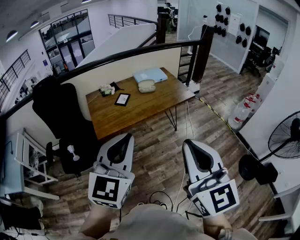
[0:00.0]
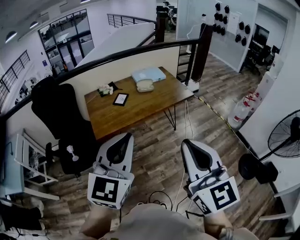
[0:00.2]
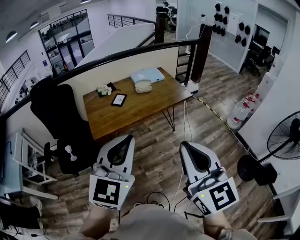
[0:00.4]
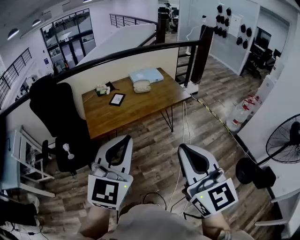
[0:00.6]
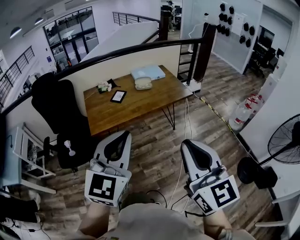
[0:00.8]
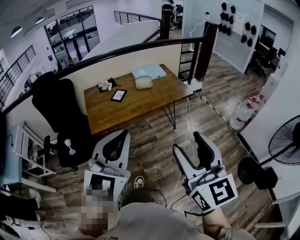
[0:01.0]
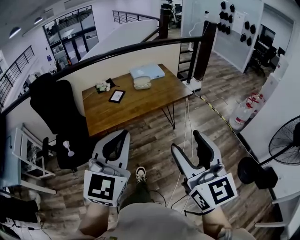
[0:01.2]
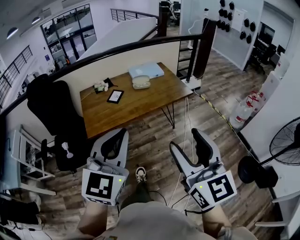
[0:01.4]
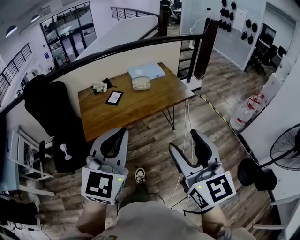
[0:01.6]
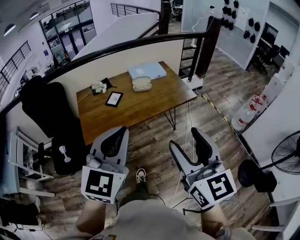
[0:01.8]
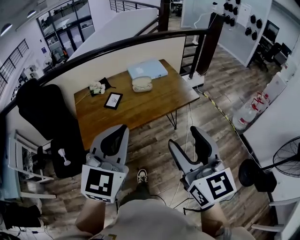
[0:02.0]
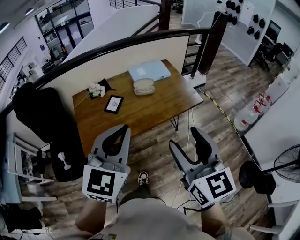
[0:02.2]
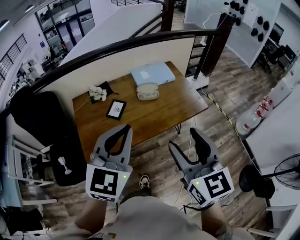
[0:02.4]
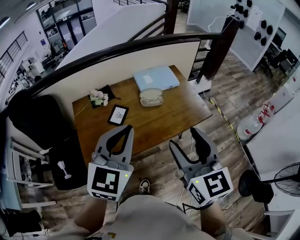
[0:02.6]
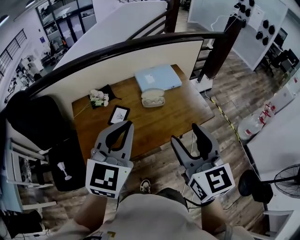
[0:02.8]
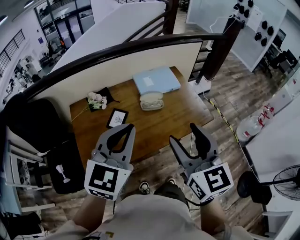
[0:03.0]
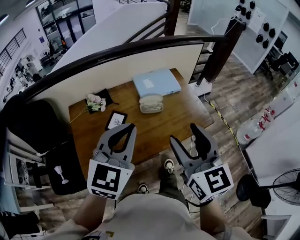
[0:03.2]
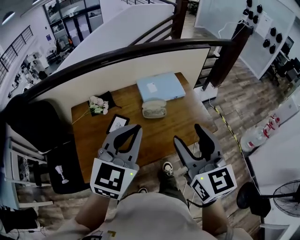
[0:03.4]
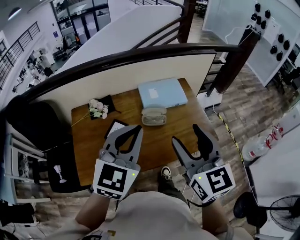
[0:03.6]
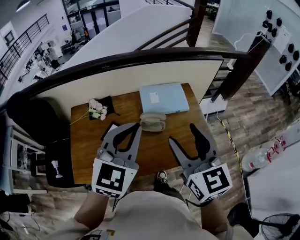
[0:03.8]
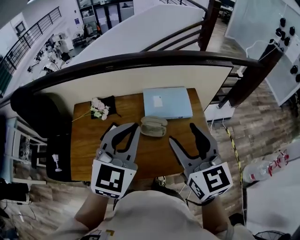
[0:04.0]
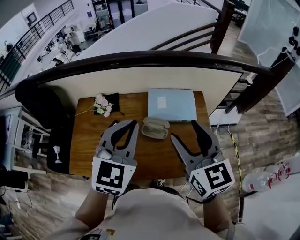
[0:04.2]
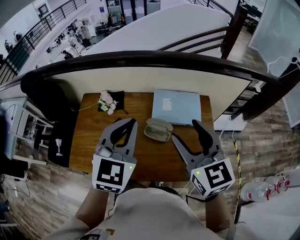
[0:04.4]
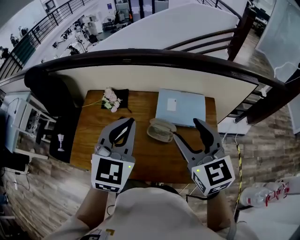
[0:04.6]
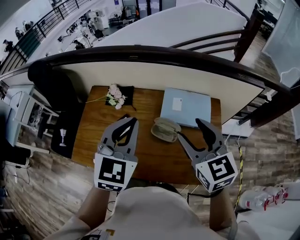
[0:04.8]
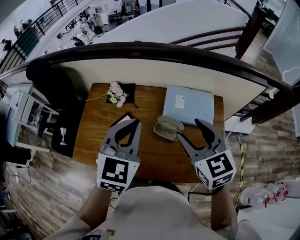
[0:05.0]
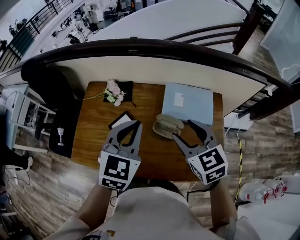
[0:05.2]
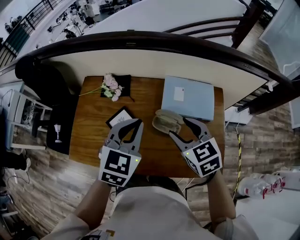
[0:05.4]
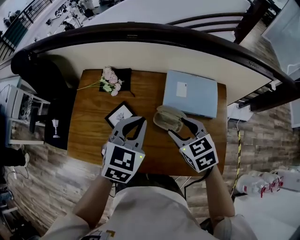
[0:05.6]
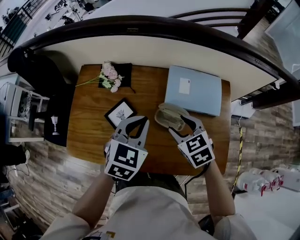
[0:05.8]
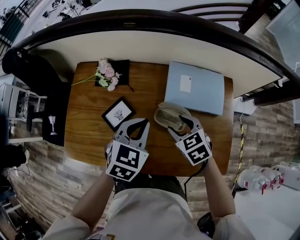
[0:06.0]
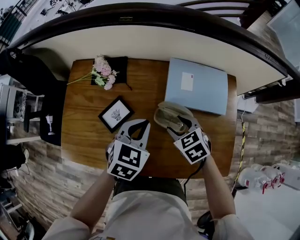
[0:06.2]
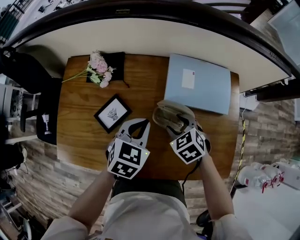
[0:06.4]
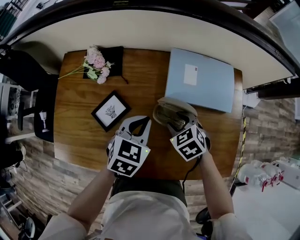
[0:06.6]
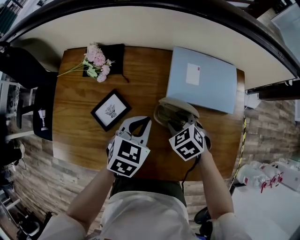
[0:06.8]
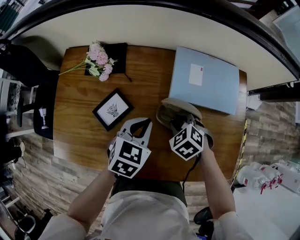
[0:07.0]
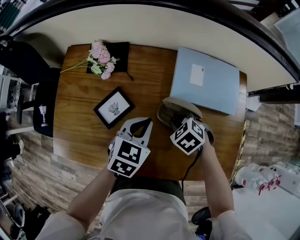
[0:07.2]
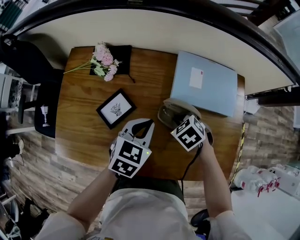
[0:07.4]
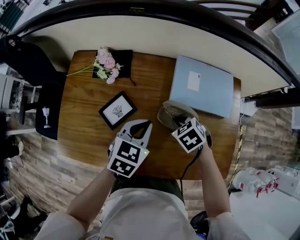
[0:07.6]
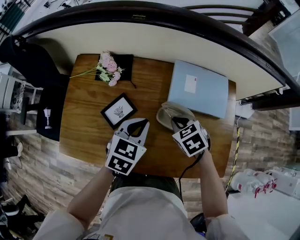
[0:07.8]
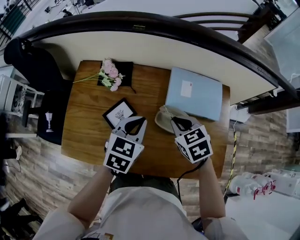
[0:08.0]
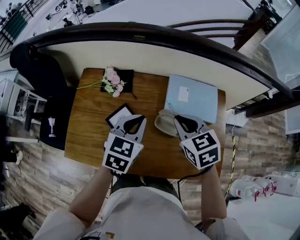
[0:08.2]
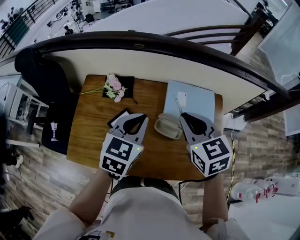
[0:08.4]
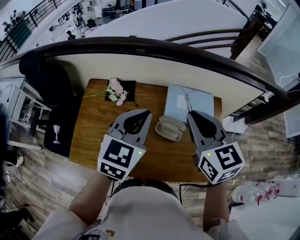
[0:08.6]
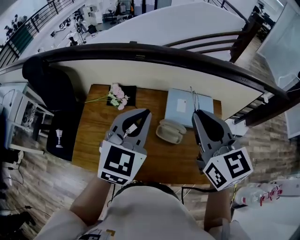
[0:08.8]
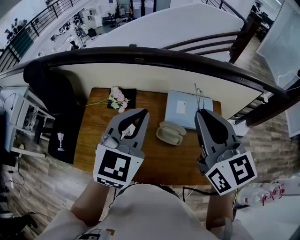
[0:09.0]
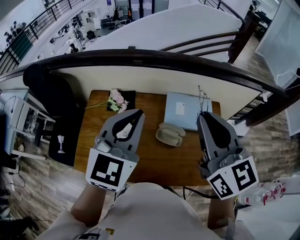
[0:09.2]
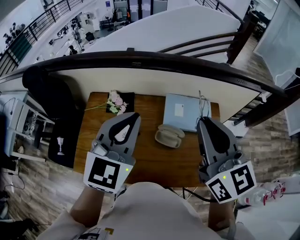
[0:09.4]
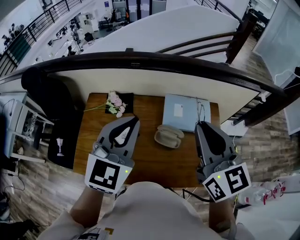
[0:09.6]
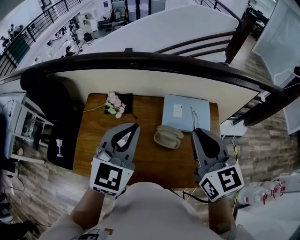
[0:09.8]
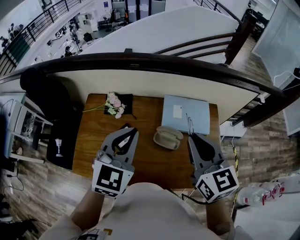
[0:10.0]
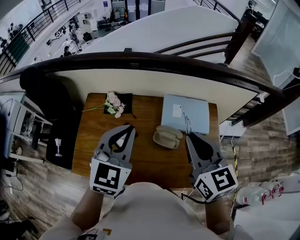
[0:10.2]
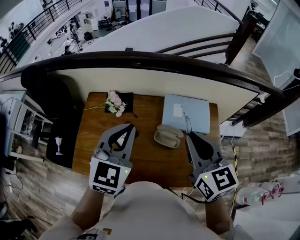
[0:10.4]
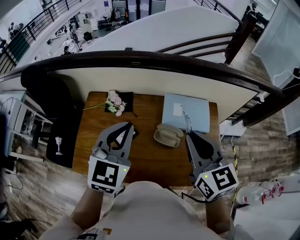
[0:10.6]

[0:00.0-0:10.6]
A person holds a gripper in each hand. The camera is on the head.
0.0 to 1.6 s: The right gripper heads forward, to the right and downward, covering about 15 cm, and opens up; the left gripper goes approximately 10 cm forward and to the right.
1.6 to 3.0 s: The grippers both shift forward by approximately 40 cm.
3.0 to 4.6 s: The left gripper ends up some 25 cm from where it was, and changes its angle by approximately 40 degrees. The right gripper ends up some 30 cm from where it was, and swivels approximately 30 degrees.
4.6 to 6.0 s: Both grippers travel together downward, roughly 25 cm. The left gripper rotates about 30 degrees. Meanwhile the right gripper points its fingers about 40 degrees further downward.
6.0 to 7.6 s: Both grippers move downward, about 10 cm. The right gripper closes.
7.6 to 9.0 s: Both grippers move upward, about 40 cm. The right gripper tilts its fingers some 60 degrees upward. Meanwhile the left gripper changes its angle by roughly 40 degrees.
9.0 to 10.6 s: The right gripper is displaced downward by some 5 cm; the left gripper ends up about 5 cm from where it was.

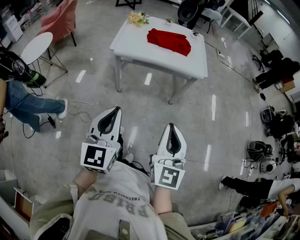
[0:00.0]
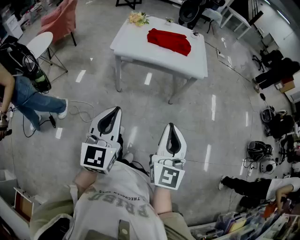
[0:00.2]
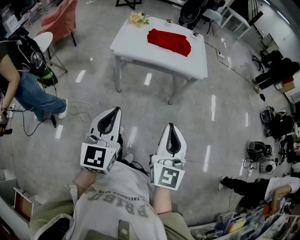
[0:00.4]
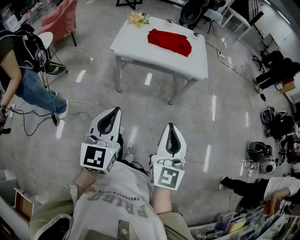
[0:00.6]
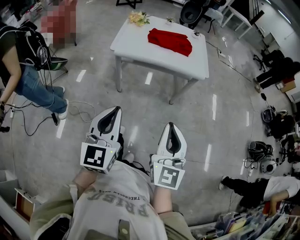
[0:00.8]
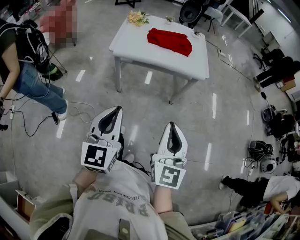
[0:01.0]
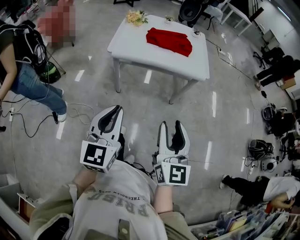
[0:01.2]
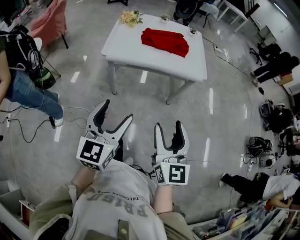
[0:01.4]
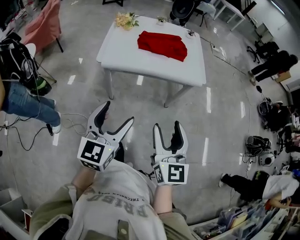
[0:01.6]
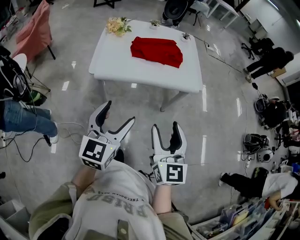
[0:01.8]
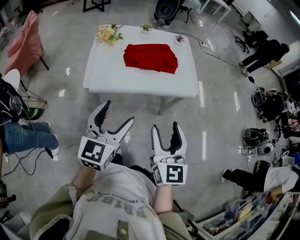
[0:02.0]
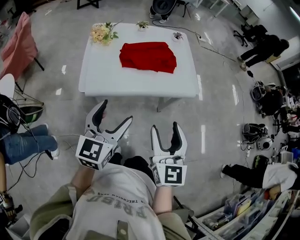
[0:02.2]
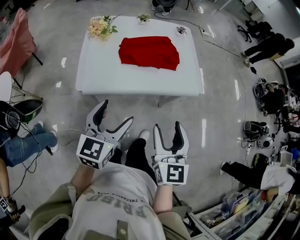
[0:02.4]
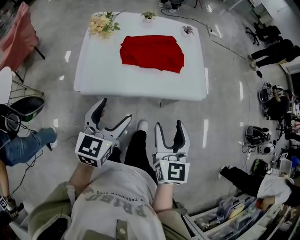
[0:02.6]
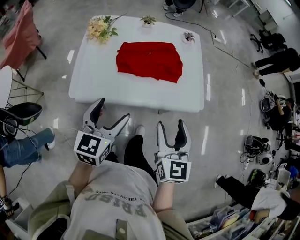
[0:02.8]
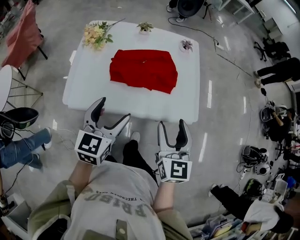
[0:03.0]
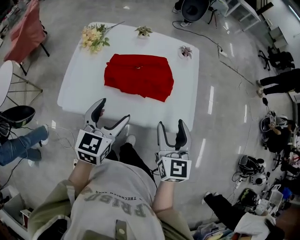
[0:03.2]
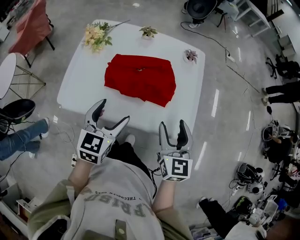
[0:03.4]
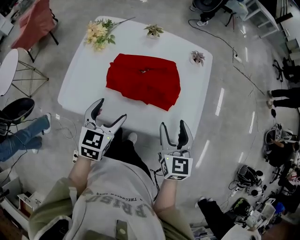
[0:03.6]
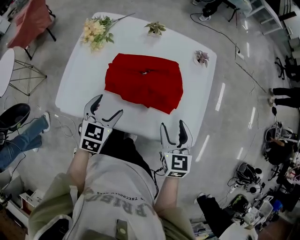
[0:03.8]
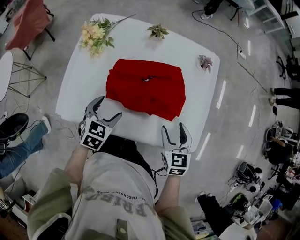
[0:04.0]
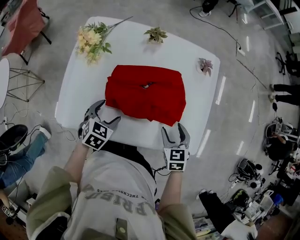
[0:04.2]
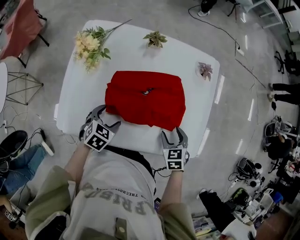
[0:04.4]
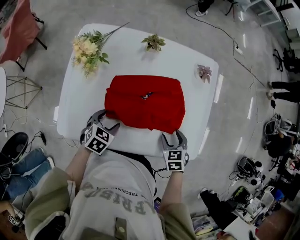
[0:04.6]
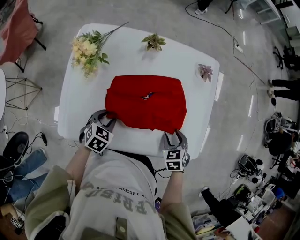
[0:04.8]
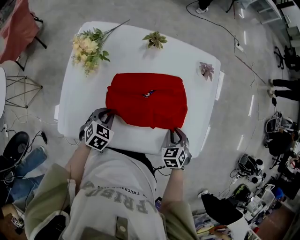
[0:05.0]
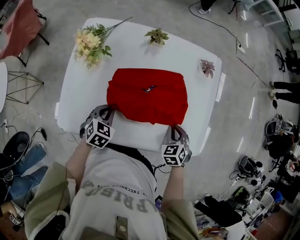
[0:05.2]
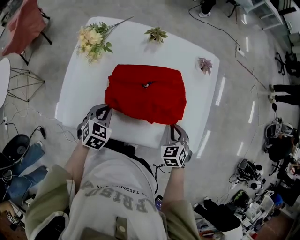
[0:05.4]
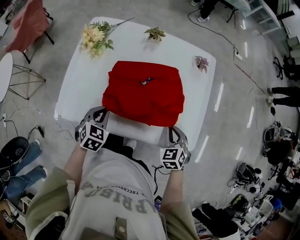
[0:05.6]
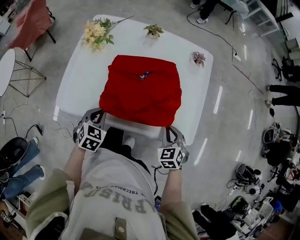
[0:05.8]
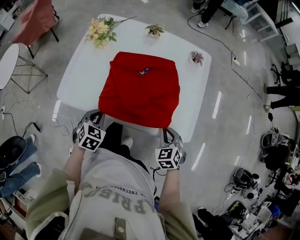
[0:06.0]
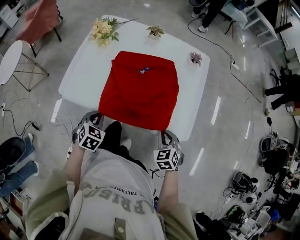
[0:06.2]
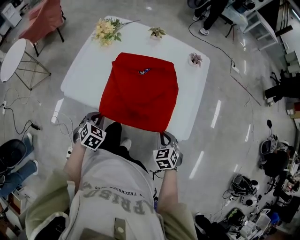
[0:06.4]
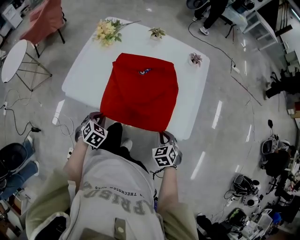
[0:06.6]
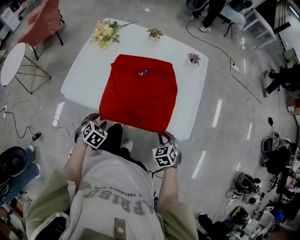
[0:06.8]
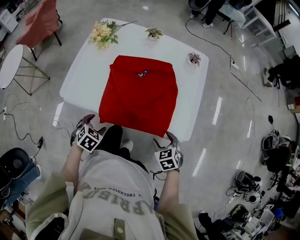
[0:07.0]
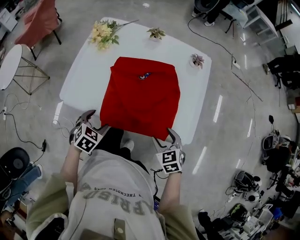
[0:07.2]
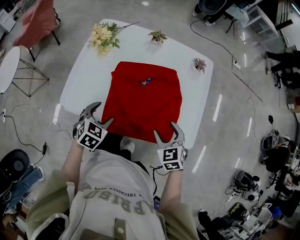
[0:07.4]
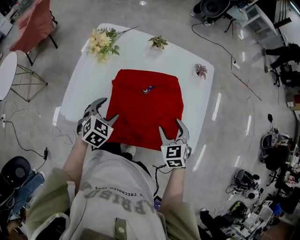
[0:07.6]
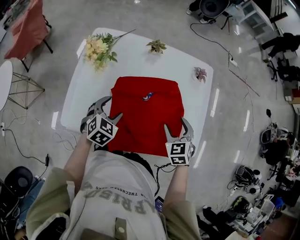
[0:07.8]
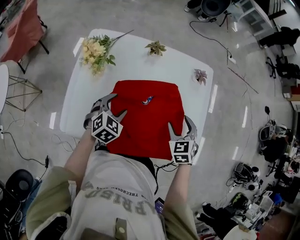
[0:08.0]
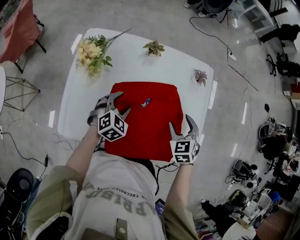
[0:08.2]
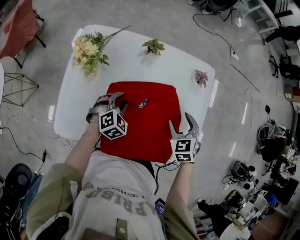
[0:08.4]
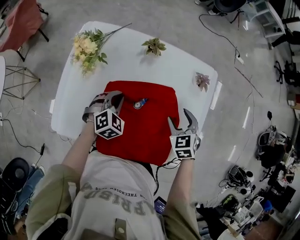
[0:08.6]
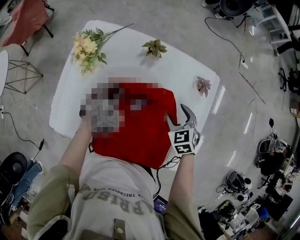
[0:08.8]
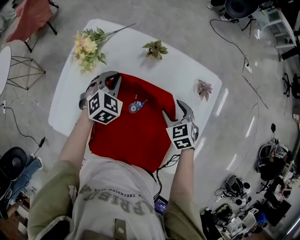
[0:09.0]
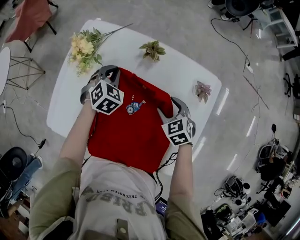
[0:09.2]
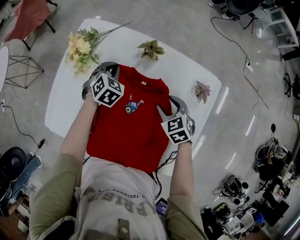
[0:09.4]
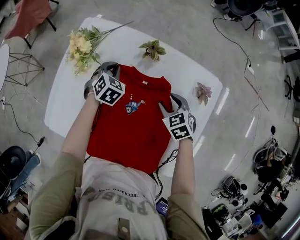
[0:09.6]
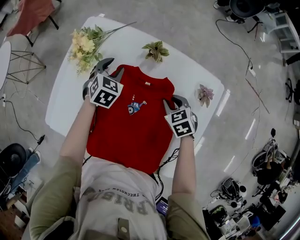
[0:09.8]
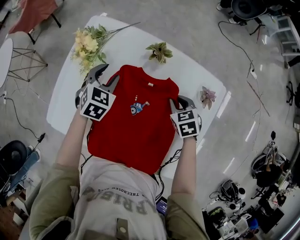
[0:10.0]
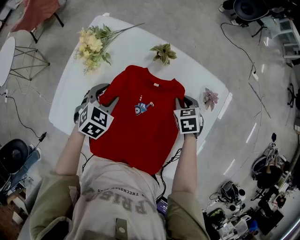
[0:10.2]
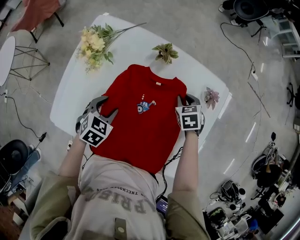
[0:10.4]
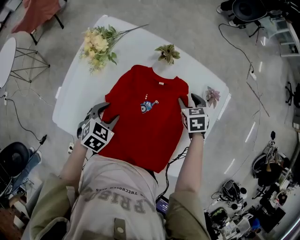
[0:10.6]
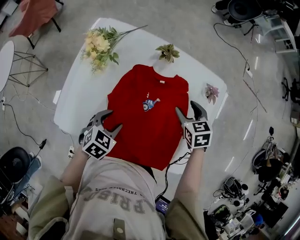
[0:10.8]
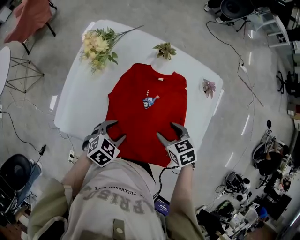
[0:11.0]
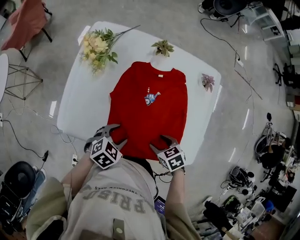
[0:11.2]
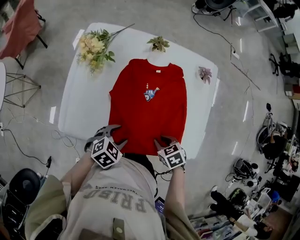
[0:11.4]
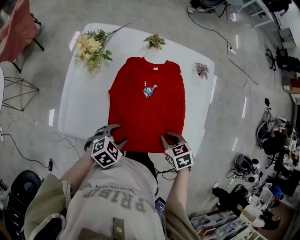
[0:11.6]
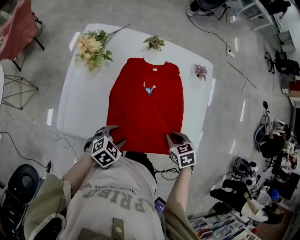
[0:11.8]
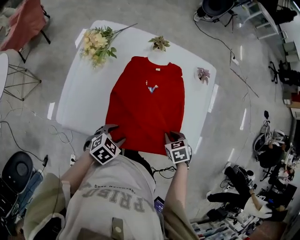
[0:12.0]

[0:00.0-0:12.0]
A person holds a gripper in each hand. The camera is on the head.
0.0 to 1.6 s: Both grippers travel together forward, some 15 cm. The right gripper opens. The left gripper opens.
1.6 to 3.0 s: Both grippers move forward, roughly 35 cm.
3.0 to 4.4 s: Both grippers move downward and forward, roughly 30 cm. The left gripper tilts its fingers roughly 40 degrees downward. Meanwhile the right gripper points its fingers roughly 40 degrees further downward.
4.4 to 6.0 s: Both grippers travel together backward, about 10 cm. The left gripper closes up, while the right gripper closes.
6.0 to 7.6 s: The right gripper moves forward, upward and to the left, some 15 cm, and opens up. The left gripper heads forward, covering some 10 cm, and opens.
7.6 to 9.0 s: The left gripper moves approximately 25 cm, and closes up; the right gripper changes place by some 20 cm.
9.0 to 10.4 s: The left gripper goes about 10 cm backward, rotates about 20 degrees, and opens up. The right gripper is displaced forward by some 5 cm, and closes its fingers.
10.4 to 12.0 s: The left gripper ends up some 20 cm from where it was, and changes its angle by some 20 degrees. Meanwhile the right gripper moves up and down over approximately 10 cm, changing direction 3 times, and opens, then closes again.

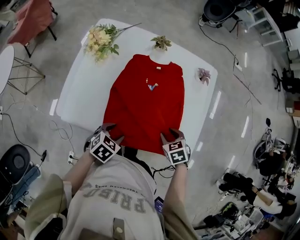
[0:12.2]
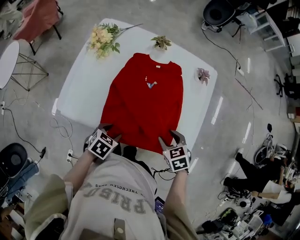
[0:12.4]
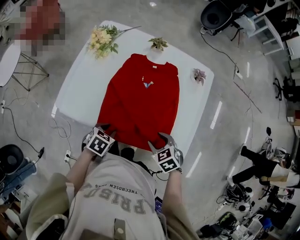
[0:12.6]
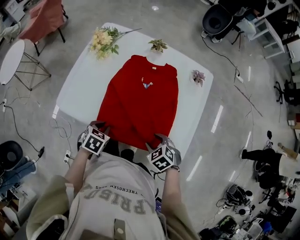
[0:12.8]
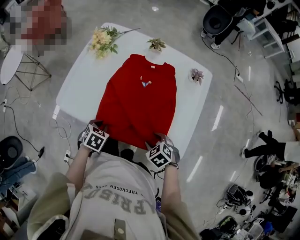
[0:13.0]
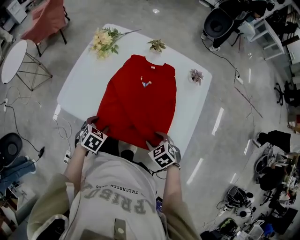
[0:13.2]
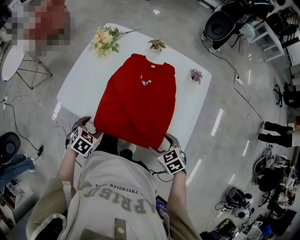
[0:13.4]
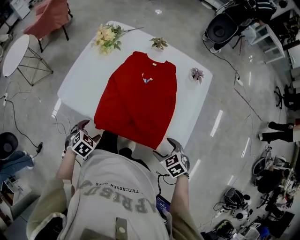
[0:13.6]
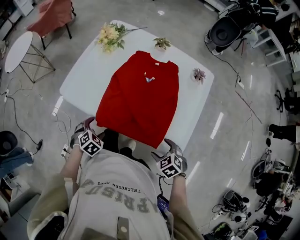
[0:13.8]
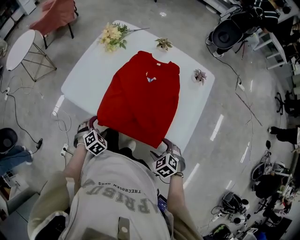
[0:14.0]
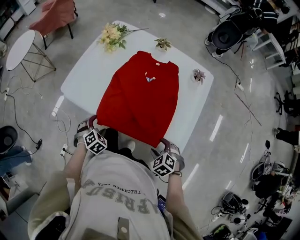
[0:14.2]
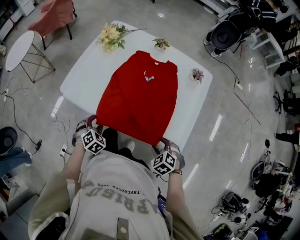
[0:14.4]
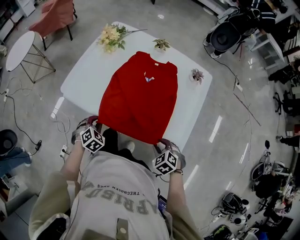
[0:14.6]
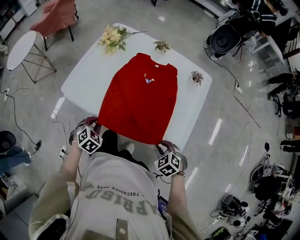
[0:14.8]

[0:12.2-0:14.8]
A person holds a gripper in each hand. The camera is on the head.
12.2 to 13.4 s: The right gripper changes place by about 10 cm, and opens, while the left gripper moves approximately 10 cm, and closes, then opens again.
13.4 to 14.8 s: The left gripper closes its fingers; the right gripper ends up some 5 cm from where it was, changes its angle by approximately 20 degrees, and closes its fingers.
